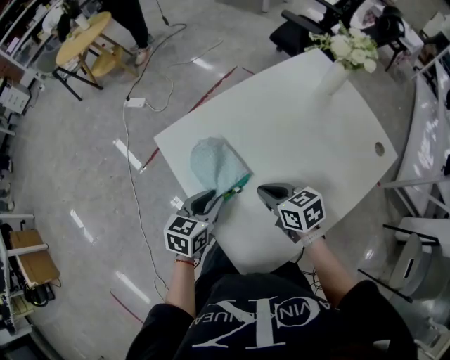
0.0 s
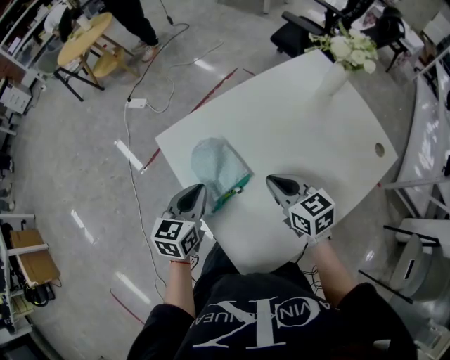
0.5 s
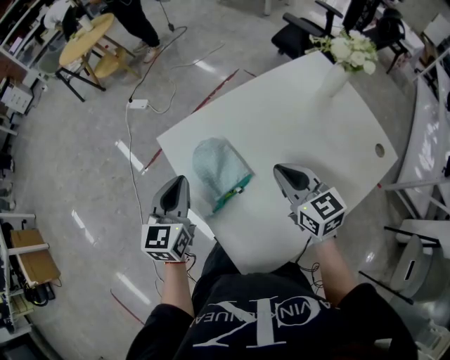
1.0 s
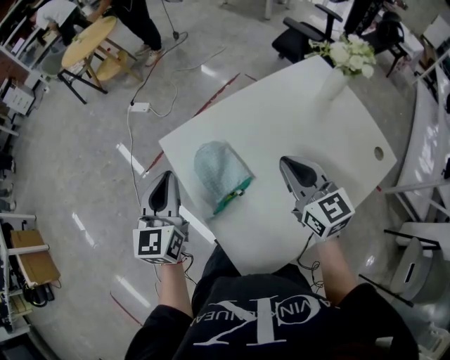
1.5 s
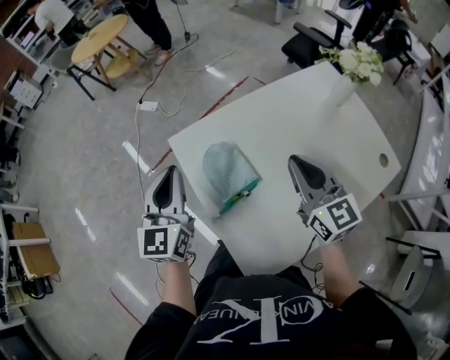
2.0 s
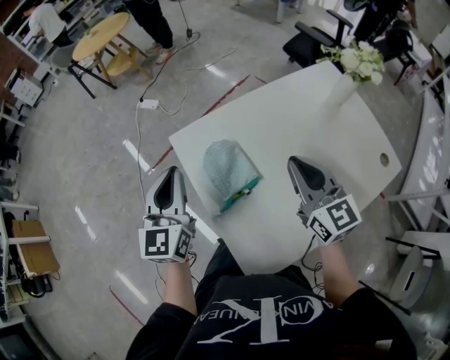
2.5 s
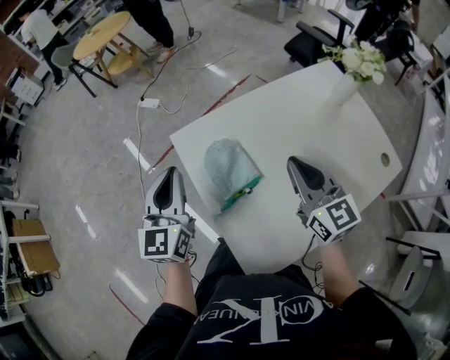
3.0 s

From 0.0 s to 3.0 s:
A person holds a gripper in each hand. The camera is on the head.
From 0.0 s to 1.5 s: The left gripper shifts about 20 cm upward and to the left, swivels some 40 degrees, and closes, while the right gripper heads upward, covering approximately 15 cm, and turns by about 40 degrees.
From 1.5 s to 3.0 s: There are only small adjustments of the grippers.

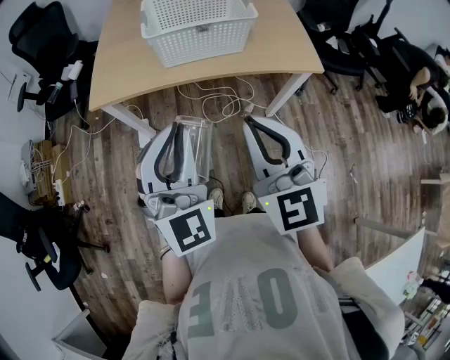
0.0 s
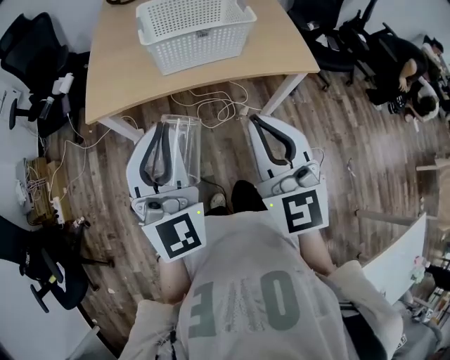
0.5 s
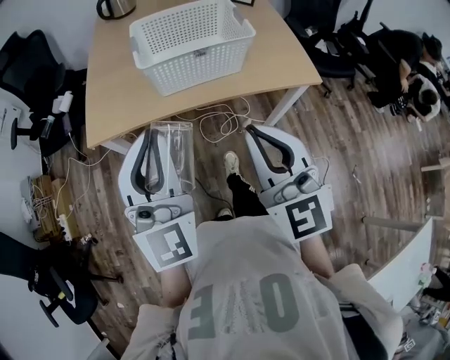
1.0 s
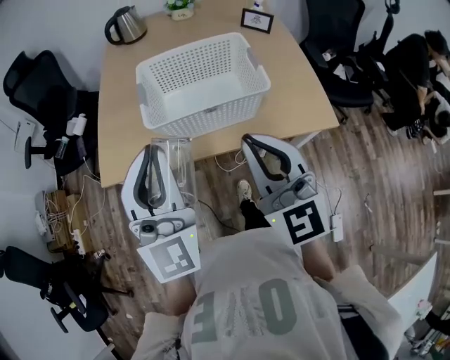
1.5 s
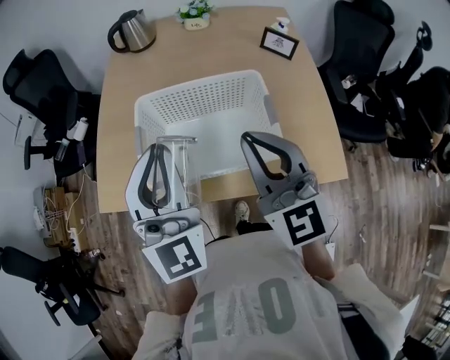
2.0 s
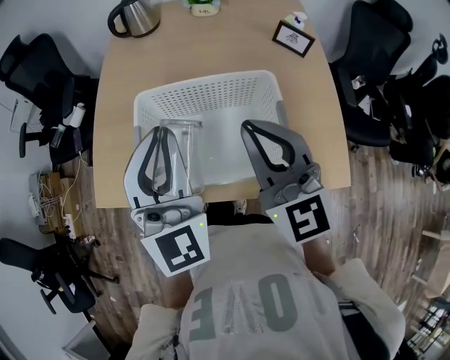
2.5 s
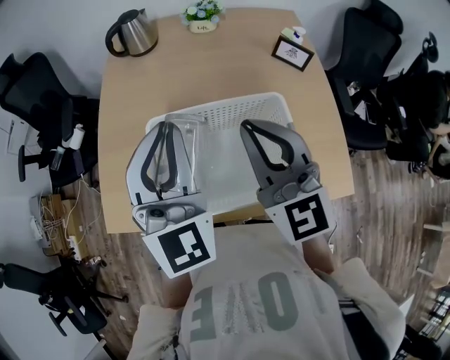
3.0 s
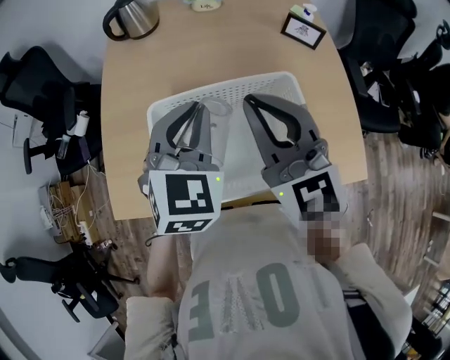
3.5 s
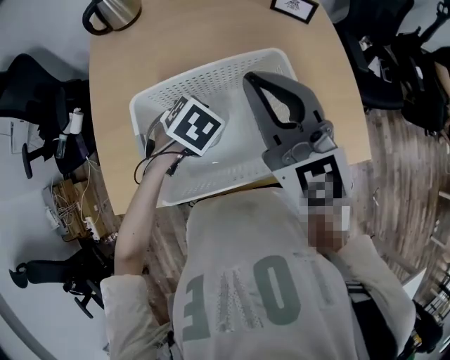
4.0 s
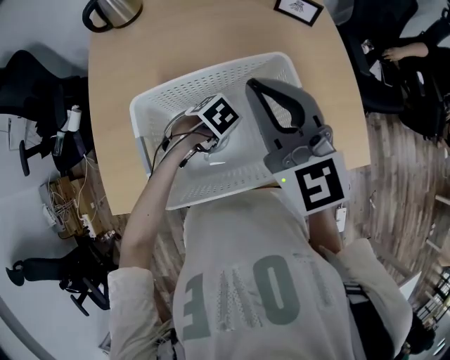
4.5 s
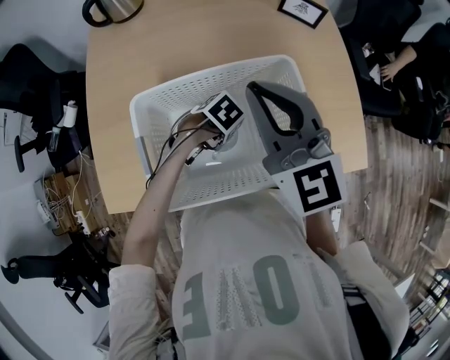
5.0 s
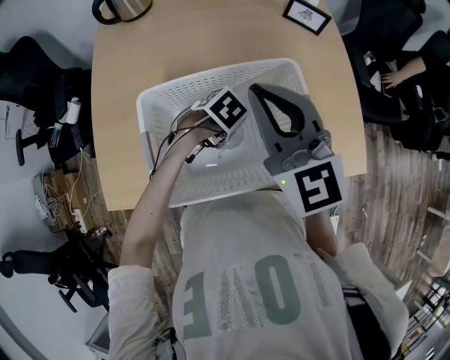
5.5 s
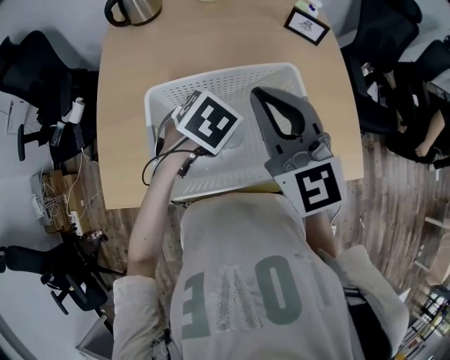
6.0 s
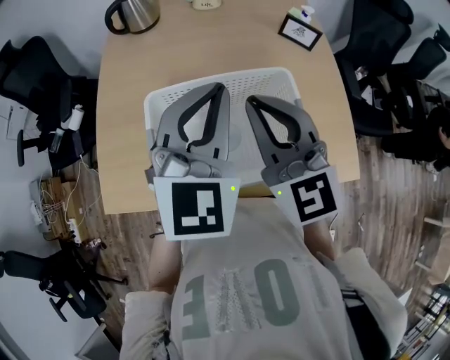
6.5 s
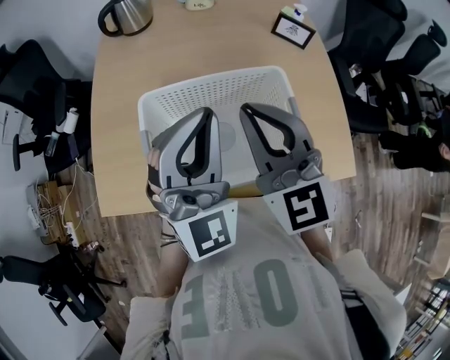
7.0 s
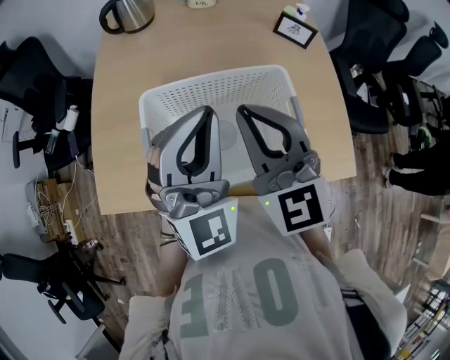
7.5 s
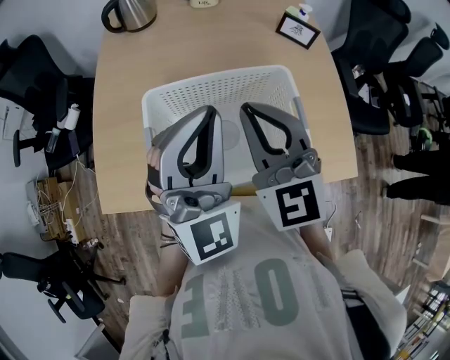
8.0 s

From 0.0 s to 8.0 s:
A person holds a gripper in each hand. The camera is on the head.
From 0.0 s to 2.0 s: Both grippers move forward, approximately 40 cm.
From 2.0 s to 4.0 s: The left gripper goes roughly 25 cm downward, and points its fingers about 80 degrees further downward, while the right gripper changes place by approximately 15 cm.
From 4.0 s to 6.0 s: The left gripper reaches about 10 cm downward, then returns.
From 6.0 s to 8.0 s: The left gripper goes some 20 cm upward, points its fingers some 70 degrees further upward, and closes its fingers.

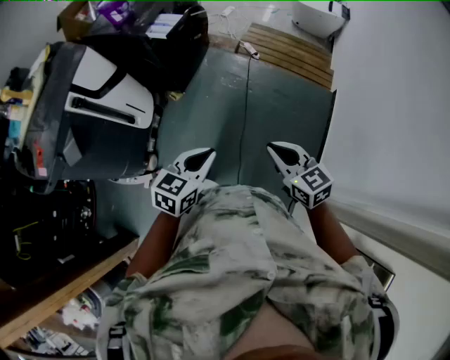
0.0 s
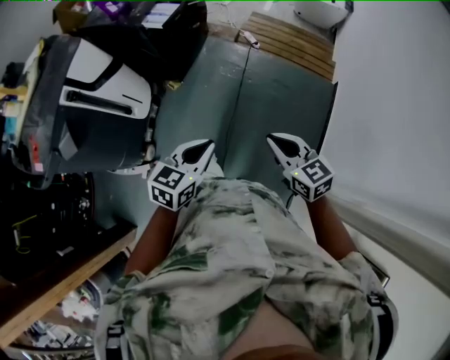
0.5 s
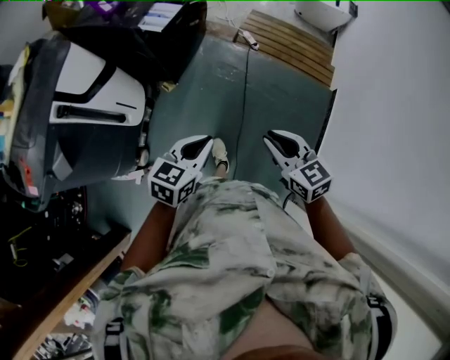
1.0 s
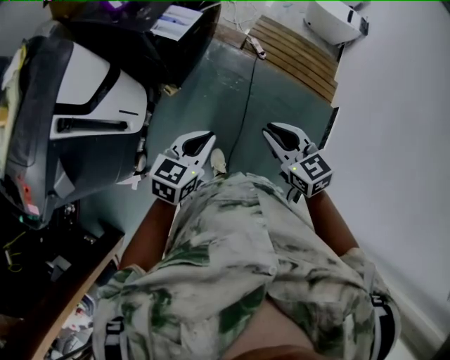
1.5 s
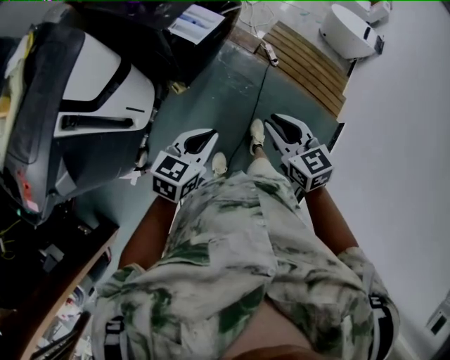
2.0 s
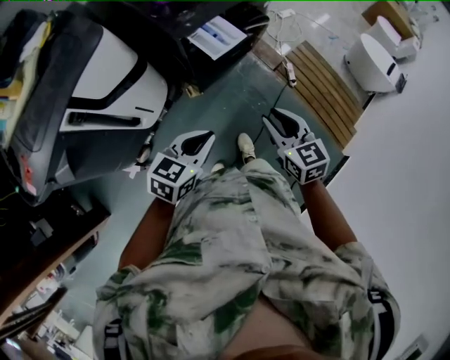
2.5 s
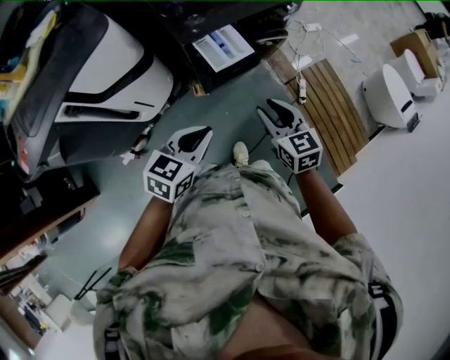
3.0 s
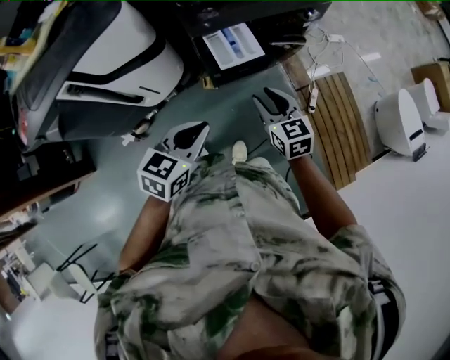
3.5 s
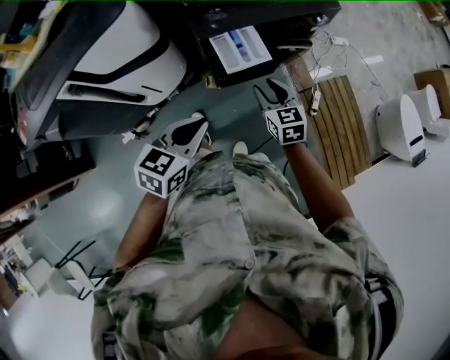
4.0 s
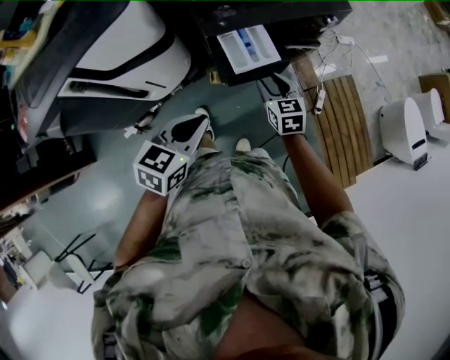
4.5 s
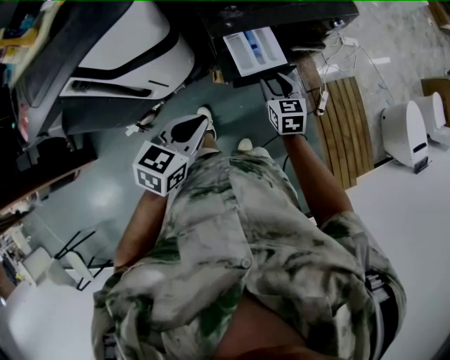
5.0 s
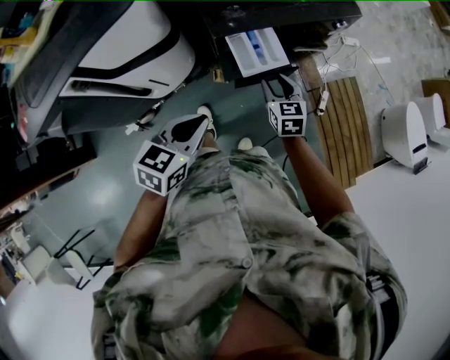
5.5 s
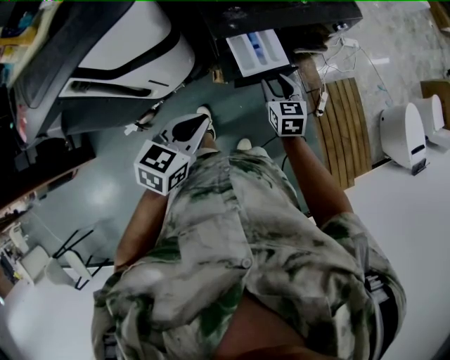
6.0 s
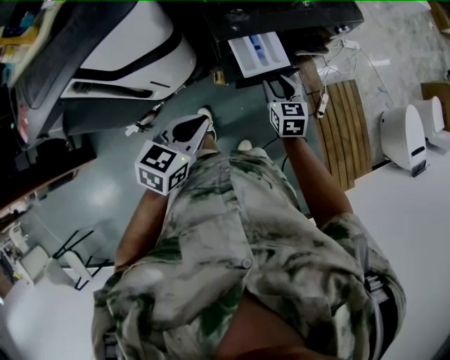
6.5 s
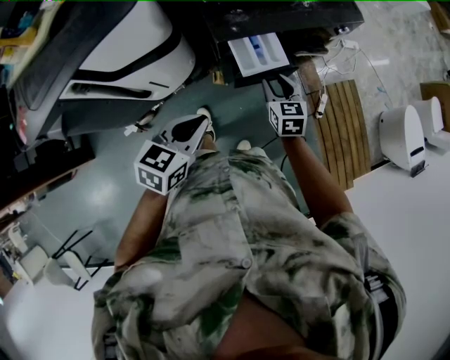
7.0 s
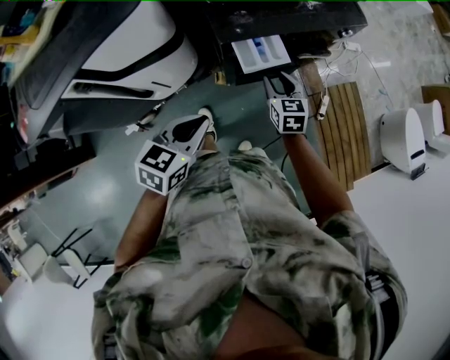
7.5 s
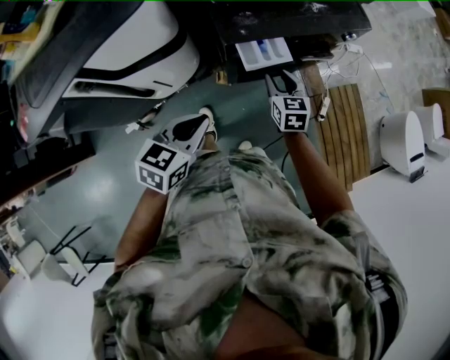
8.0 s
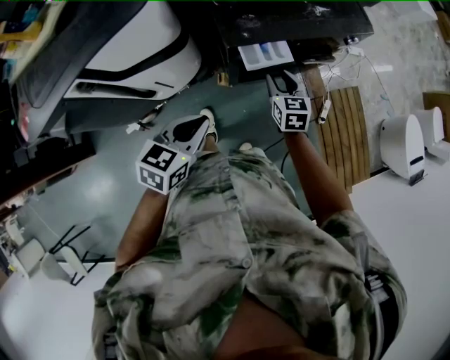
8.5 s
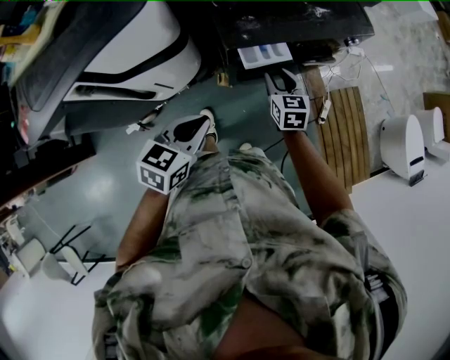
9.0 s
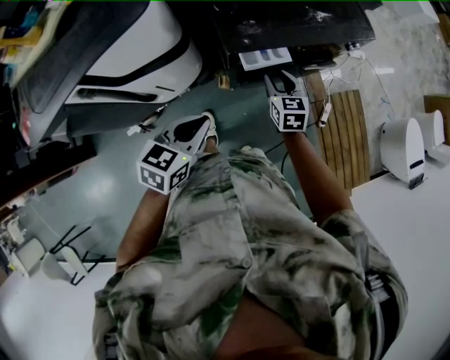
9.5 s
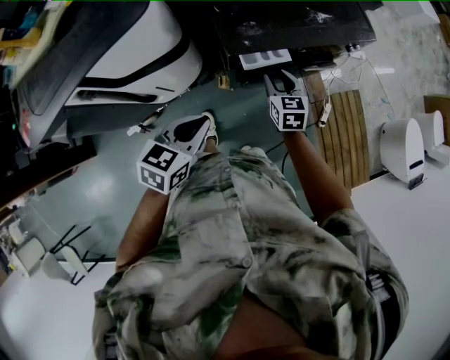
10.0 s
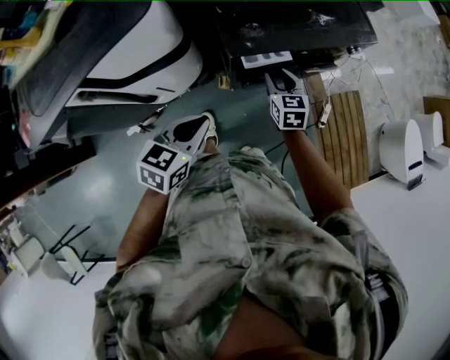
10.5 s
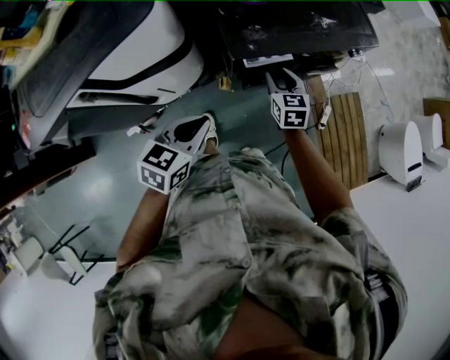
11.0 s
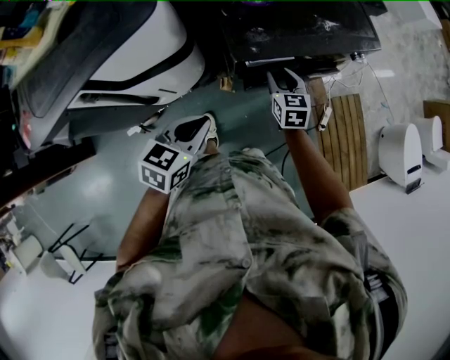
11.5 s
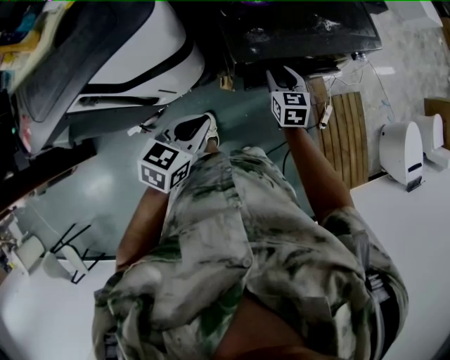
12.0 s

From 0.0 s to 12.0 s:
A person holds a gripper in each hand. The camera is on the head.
From 0.0 s to 2.0 s: The two grippers go some 35 cm forward.
From 2.0 s to 4.0 s: The right gripper ends up about 35 cm from where it was, and rotates about 20 degrees. Meanwhile the left gripper changes place by approximately 20 cm, and changes its angle by roughly 40 degrees.
From 4.0 s to 6.0 s: The right gripper goes about 5 cm forward. The left gripper changes place by roughly 5 cm.
From 6.0 s to 8.0 s: There are only small adjustments of the grippers.
From 8.0 s to 10.0 s: There are only small adjustments of the grippers.
From 10.0 s to 12.0 s: The grippers move only a little.

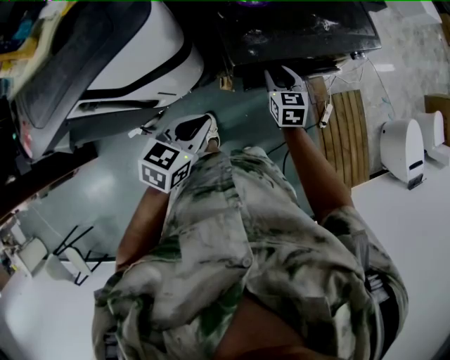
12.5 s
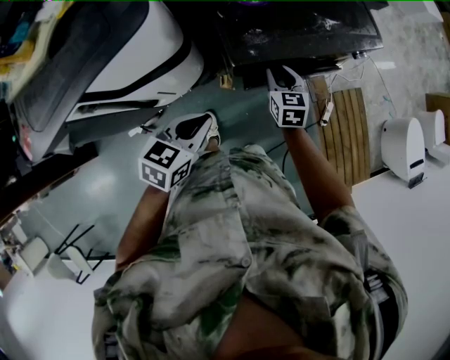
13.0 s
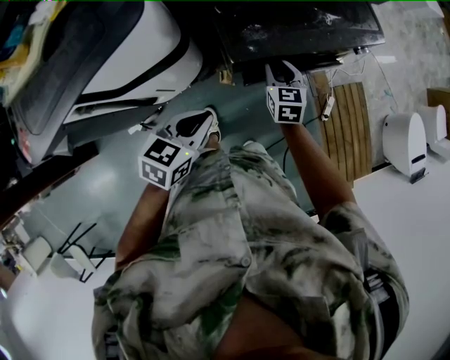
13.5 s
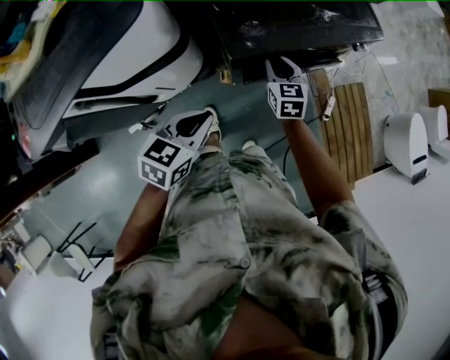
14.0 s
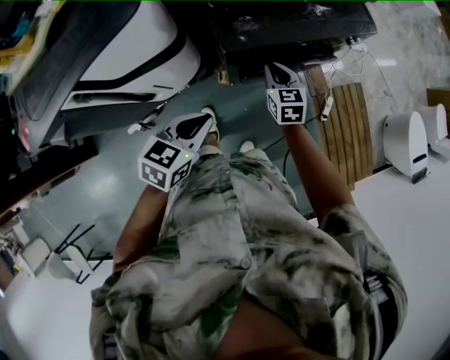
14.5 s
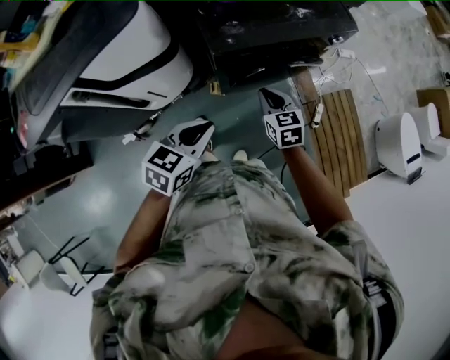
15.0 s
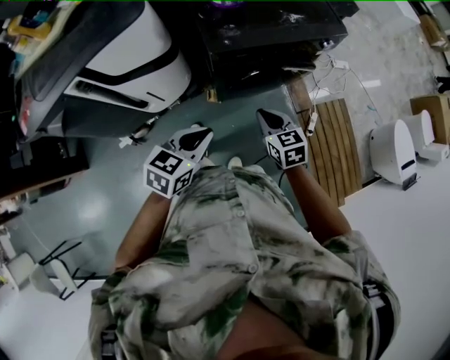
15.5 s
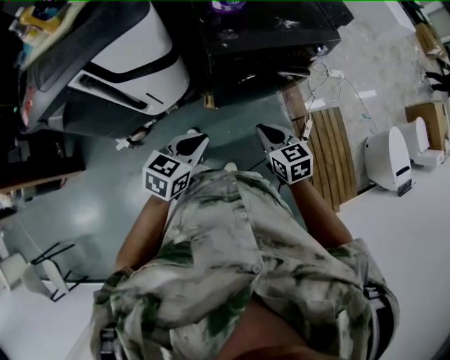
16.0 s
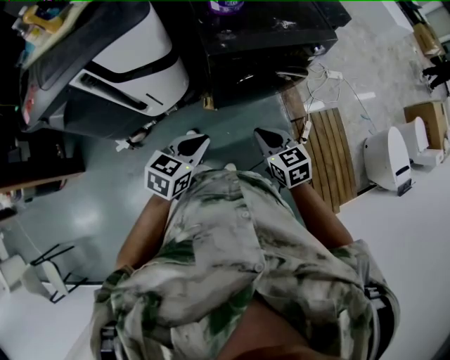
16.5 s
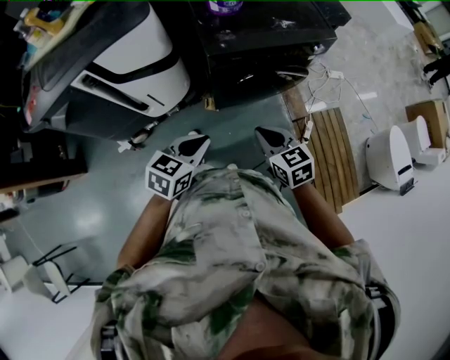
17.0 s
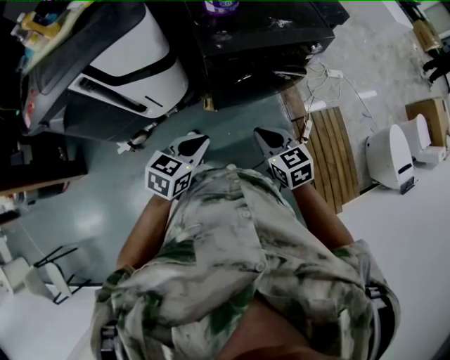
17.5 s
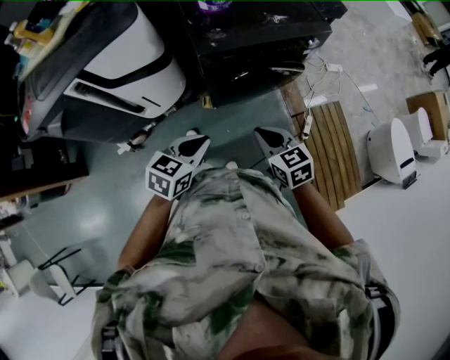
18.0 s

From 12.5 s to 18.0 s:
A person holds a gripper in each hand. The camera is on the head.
From 12.5 s to 14.5 s: The left gripper ends up approximately 5 cm from where it was, while the right gripper closes up.
From 14.5 s to 16.0 s: The left gripper moves backward and to the right, about 15 cm; the right gripper shifts roughly 25 cm backward.
From 16.0 s to 18.0 s: There are only small adjustments of the grippers.
